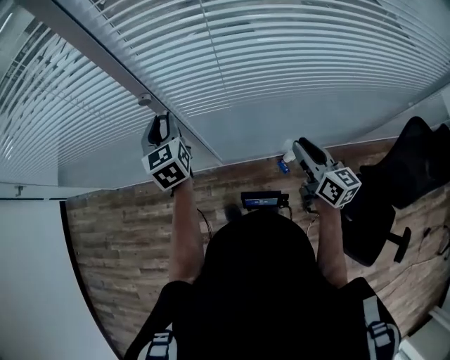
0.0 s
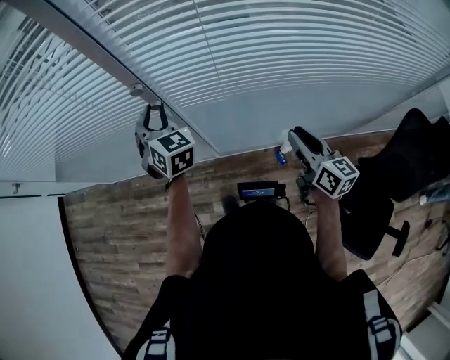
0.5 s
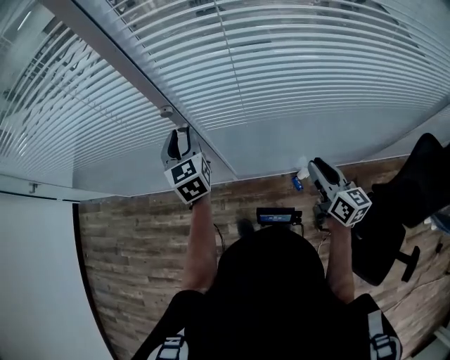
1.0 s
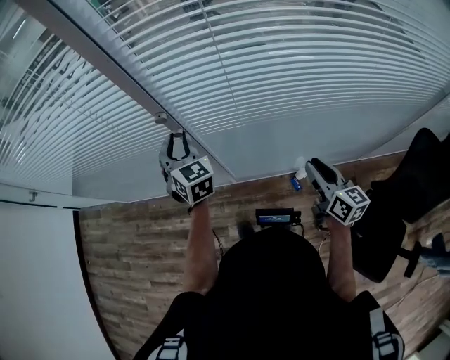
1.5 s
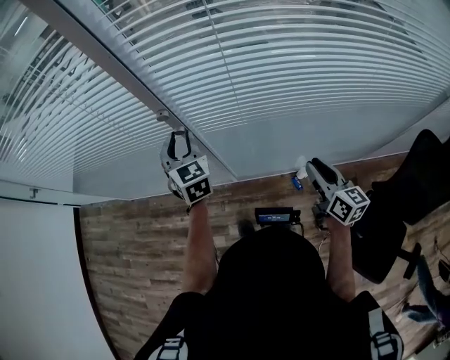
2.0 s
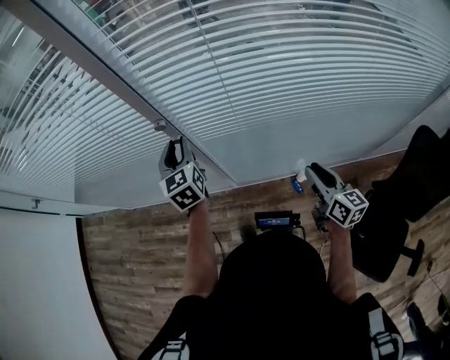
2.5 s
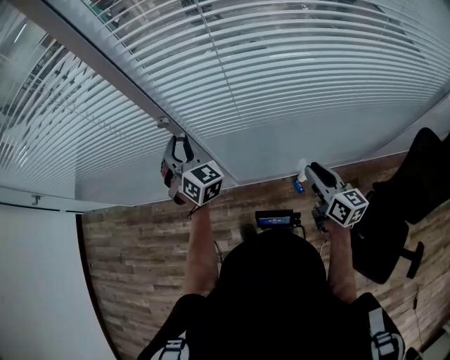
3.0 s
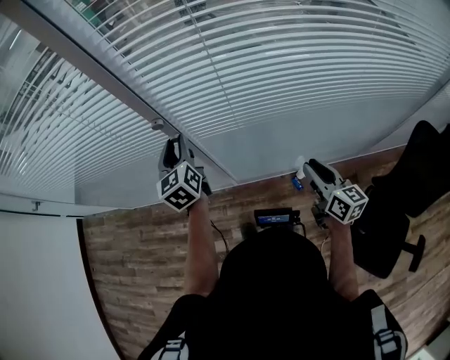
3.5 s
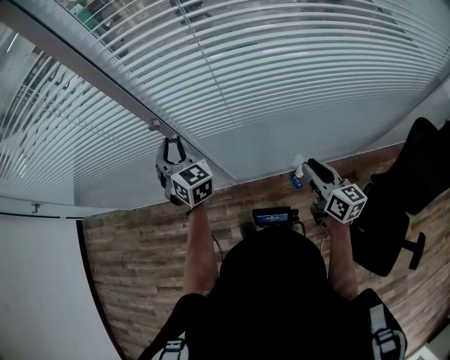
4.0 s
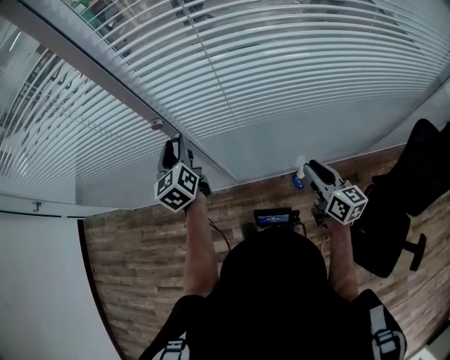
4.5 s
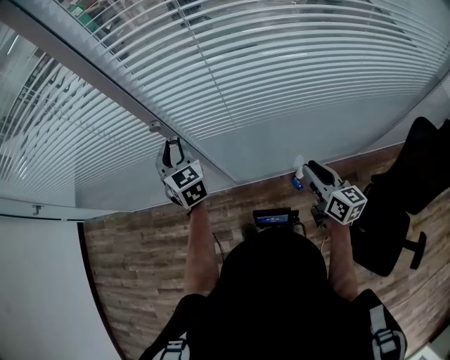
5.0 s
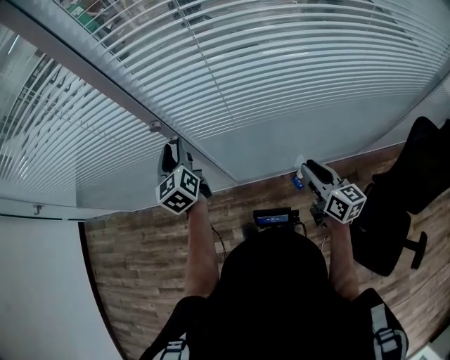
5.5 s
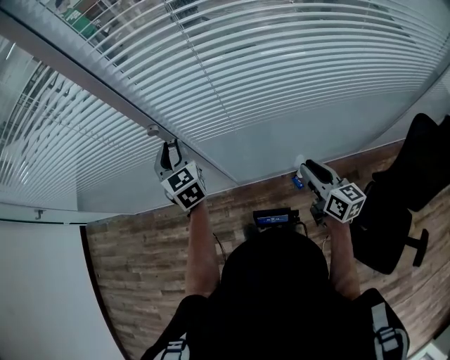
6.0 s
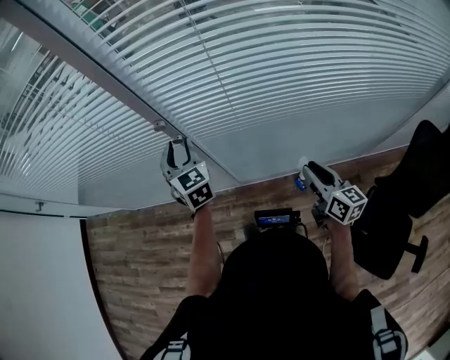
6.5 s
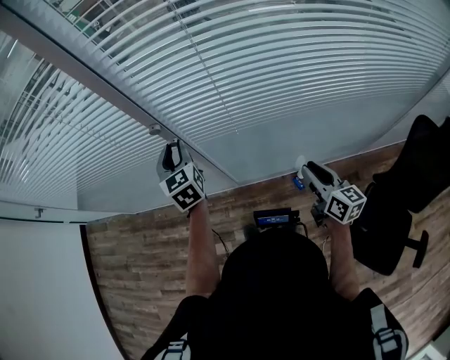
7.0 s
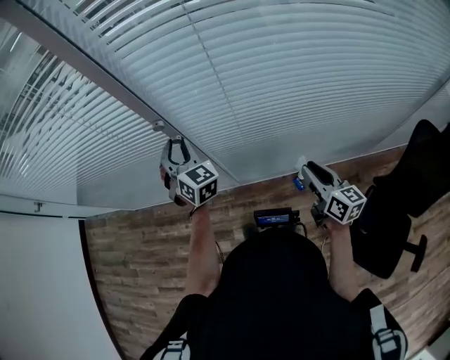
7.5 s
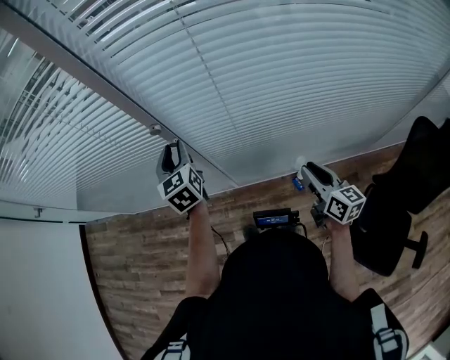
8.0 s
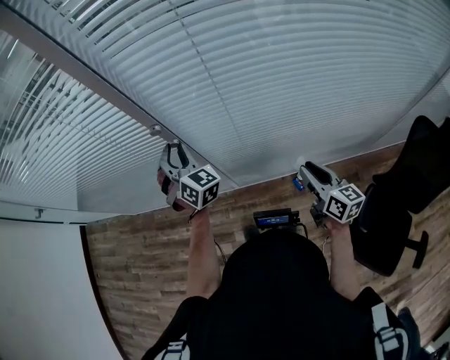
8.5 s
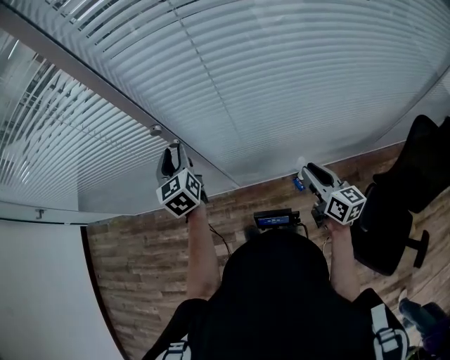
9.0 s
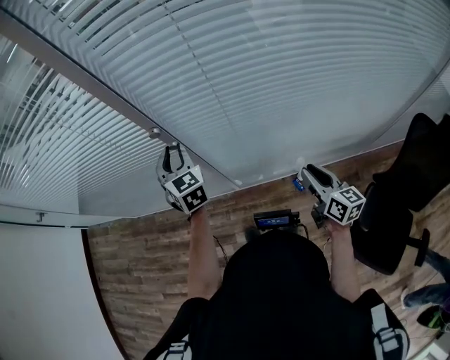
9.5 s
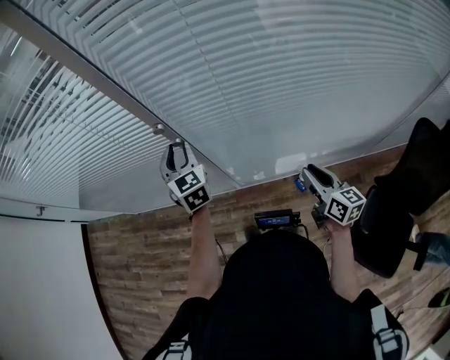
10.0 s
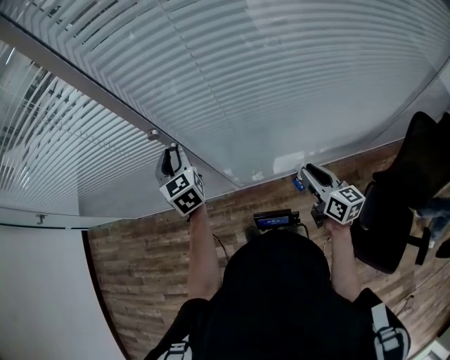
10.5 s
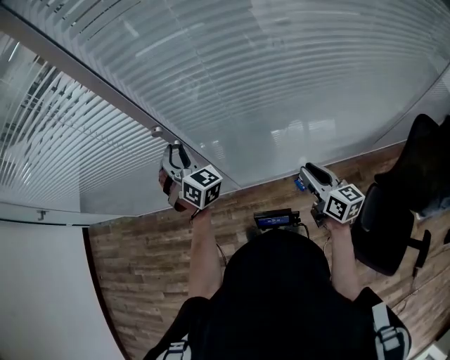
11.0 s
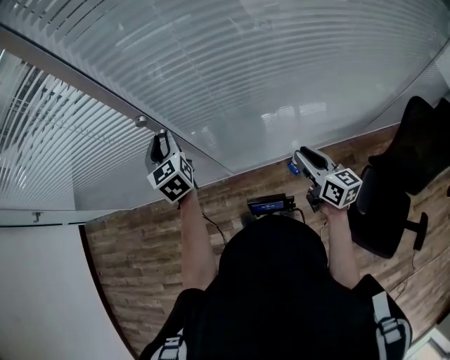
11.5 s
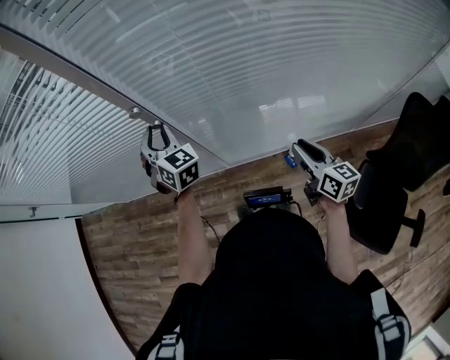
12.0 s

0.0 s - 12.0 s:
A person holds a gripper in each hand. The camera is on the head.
10.0 s - 12.0 s: The left gripper turns by about 20 degrees.

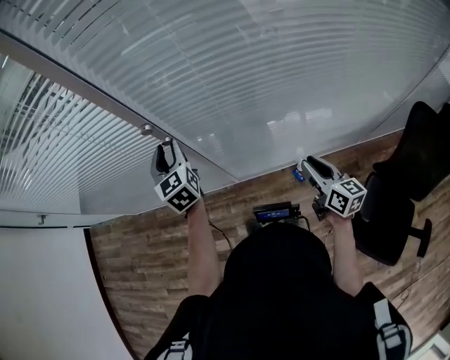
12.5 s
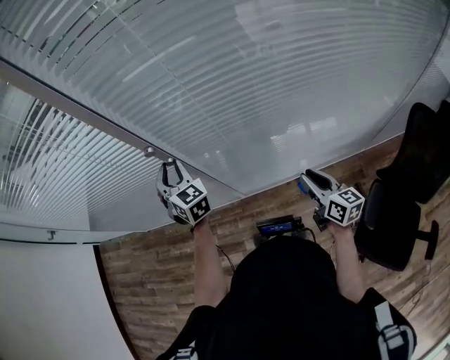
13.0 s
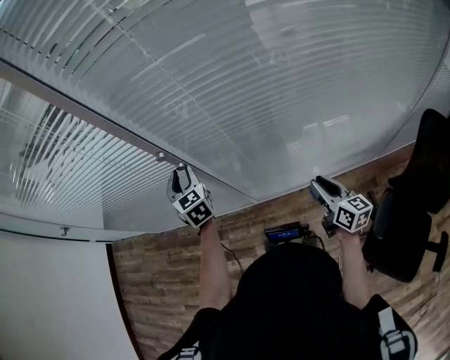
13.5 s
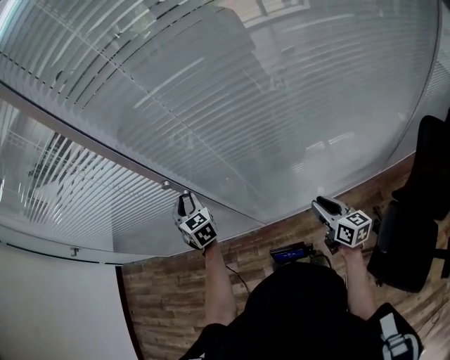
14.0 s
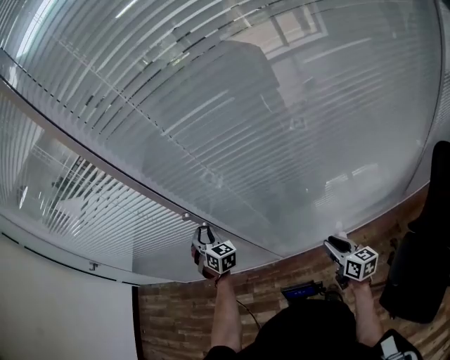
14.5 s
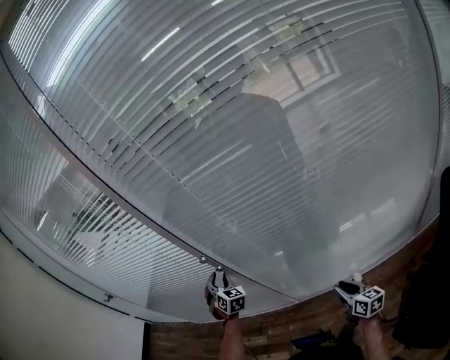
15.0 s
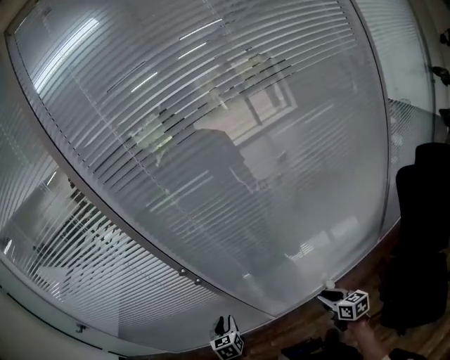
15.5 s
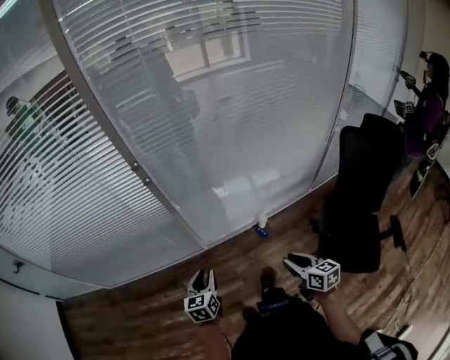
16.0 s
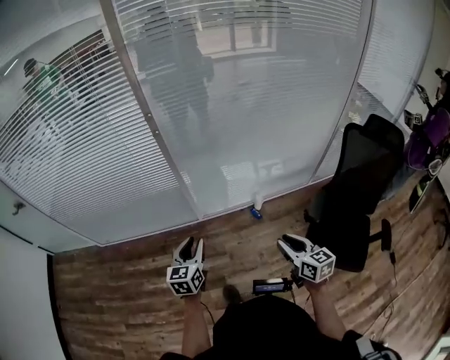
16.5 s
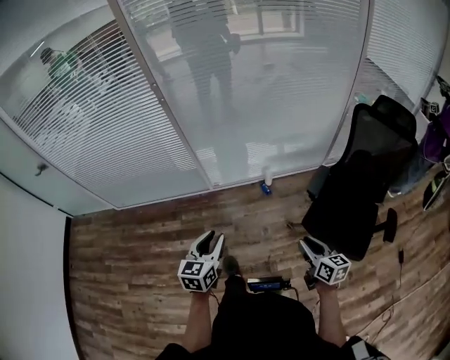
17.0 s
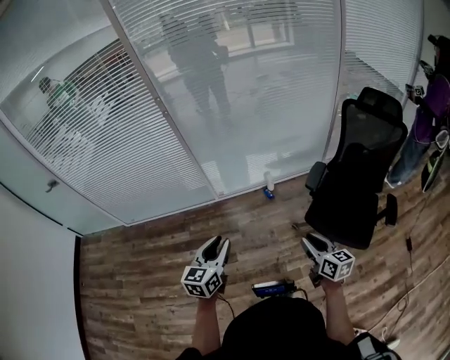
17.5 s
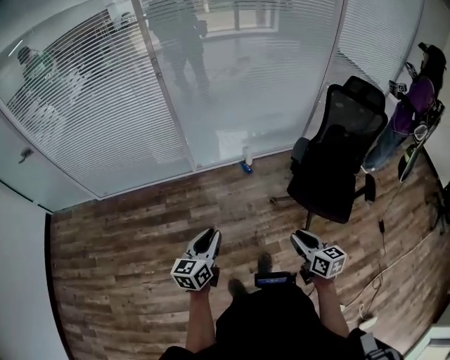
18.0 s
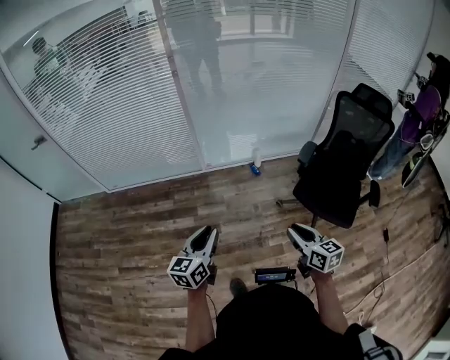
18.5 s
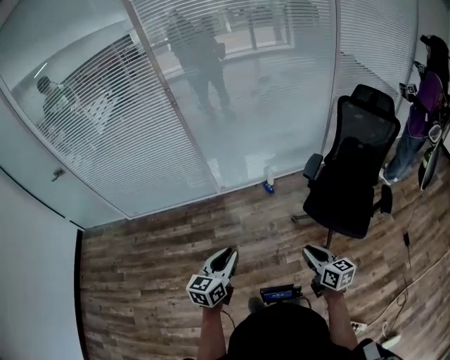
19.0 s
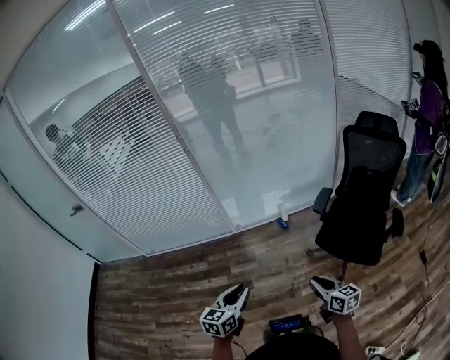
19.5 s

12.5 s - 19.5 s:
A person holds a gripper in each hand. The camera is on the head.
12.5 s - 14.5 s: Both grippers travel together downward, approximately 5 cm. The left gripper twists approximately 40 degrees clockwise, seen from behind.
14.5 s - 16.0 s: The left gripper shifts by some 35 cm, and rotates about 70 degrees. The right gripper shifts by some 25 cm.
16.0 s - 17.5 s: The left gripper shifts approximately 30 cm backward, to the right and upward. The right gripper goes roughly 25 cm backward and to the right.
17.5 s - 19.5 s: The grippers both shift backward by about 10 cm.

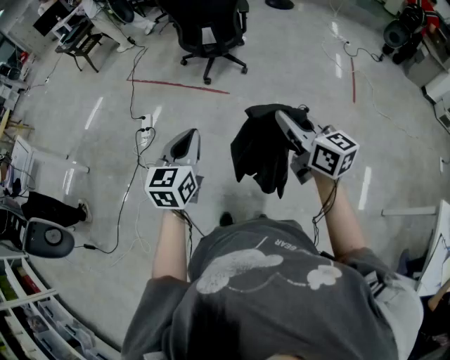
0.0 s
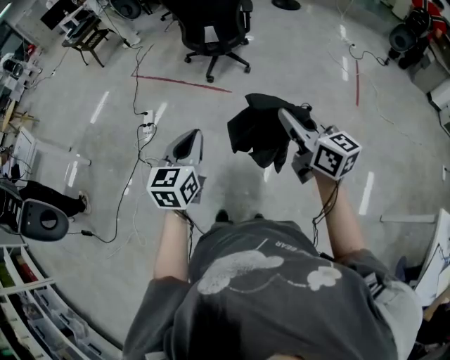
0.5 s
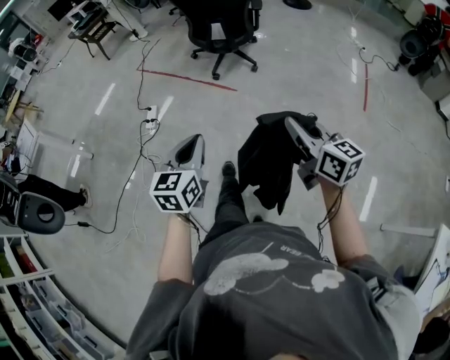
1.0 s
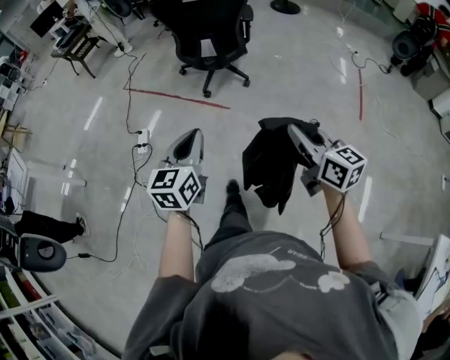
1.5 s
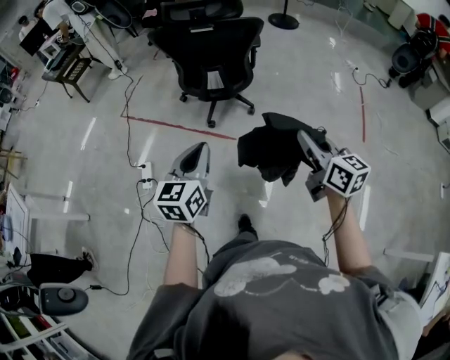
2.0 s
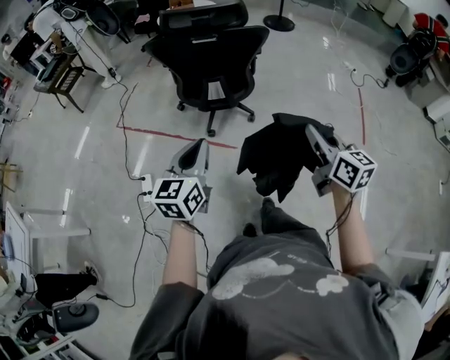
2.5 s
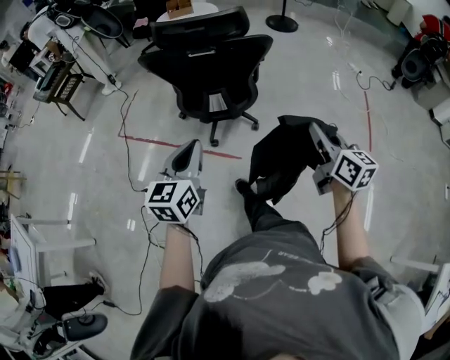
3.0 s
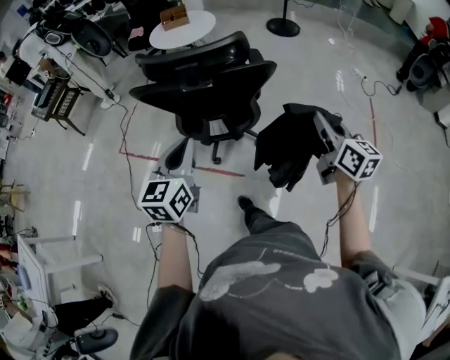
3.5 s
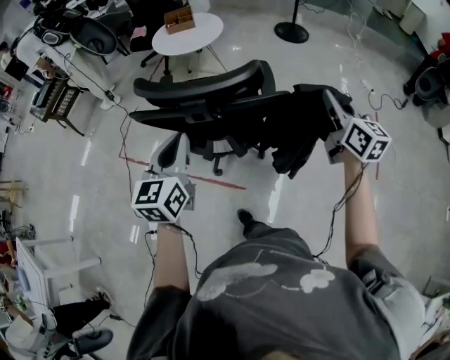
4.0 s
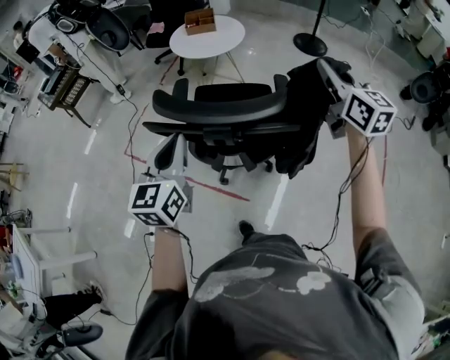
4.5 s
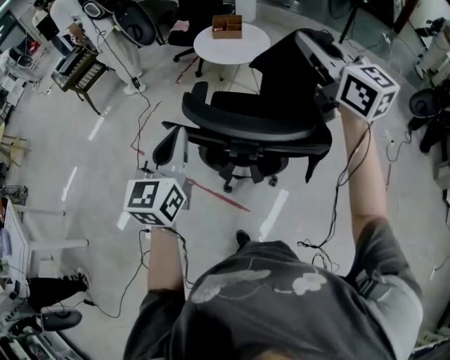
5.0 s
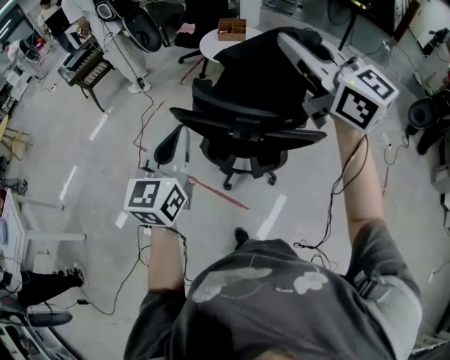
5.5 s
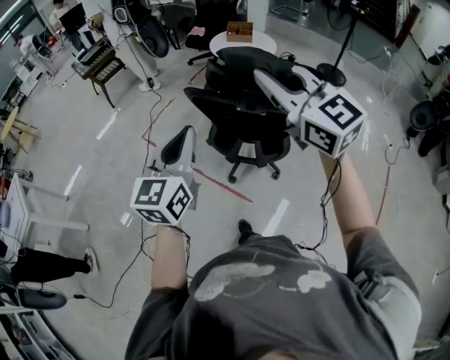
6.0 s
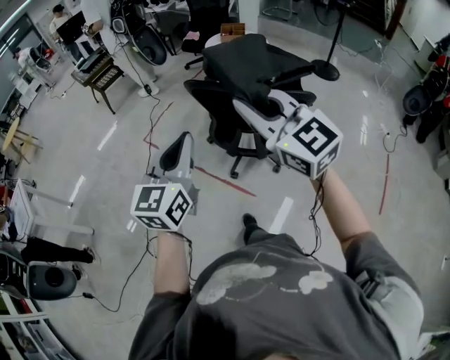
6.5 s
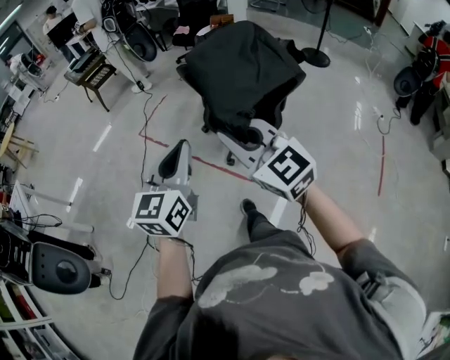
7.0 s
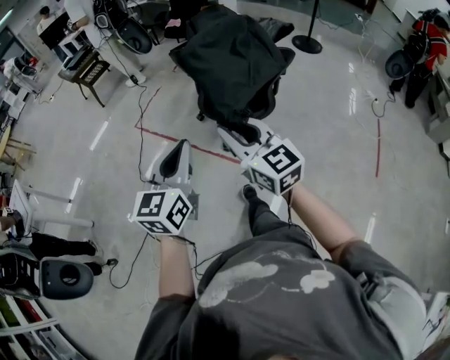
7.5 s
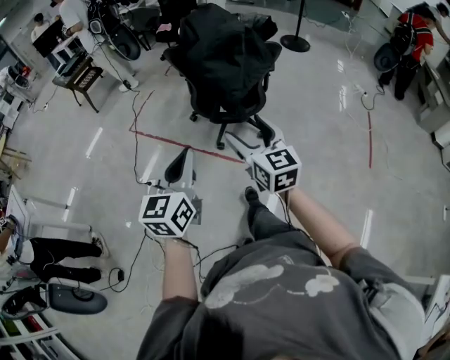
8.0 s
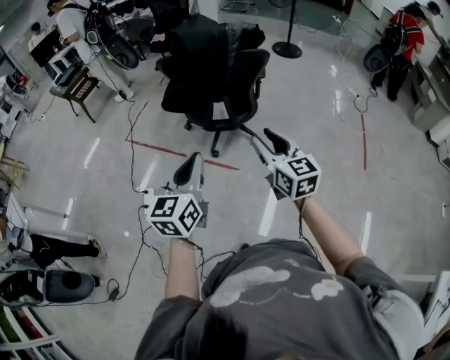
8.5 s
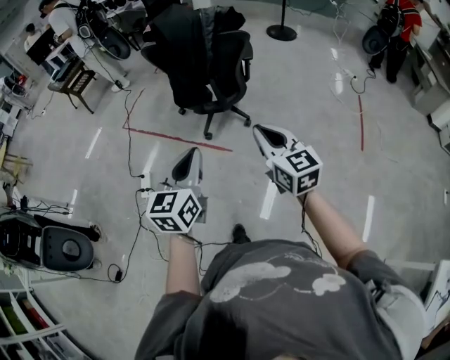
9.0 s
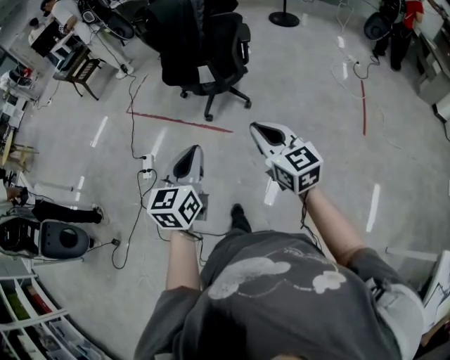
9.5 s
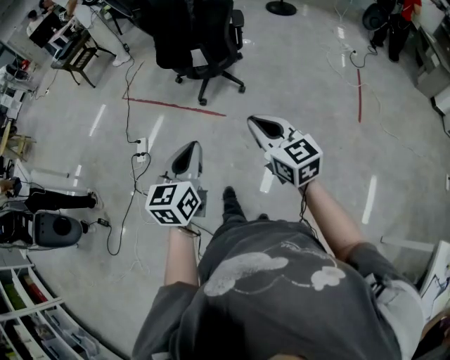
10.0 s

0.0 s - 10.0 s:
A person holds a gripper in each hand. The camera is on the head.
0.0 s - 2.0 s: Both grippers move forward, roughly 35 cm.
2.0 s - 4.0 s: Both grippers are carried forward, approximately 50 cm.
4.0 s - 6.0 s: The right gripper ends up approximately 40 cm from where it was, and turns by roughly 50 degrees. Meanwhile the left gripper shifts by approximately 15 cm.
6.0 s - 8.0 s: The left gripper shifts roughly 30 cm backward, while the right gripper is displaced backward and downward by roughly 35 cm, turns by roughly 30 degrees, and opens its fingers.
8.0 s - 10.0 s: Both grippers travel together backward and to the right, approximately 30 cm. The right gripper closes its fingers.
